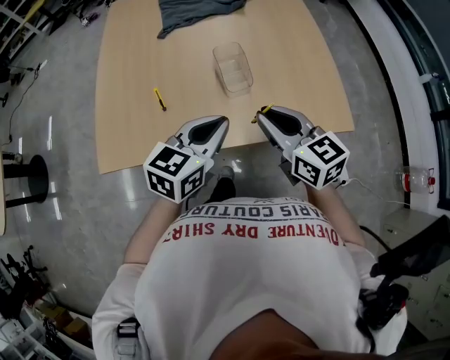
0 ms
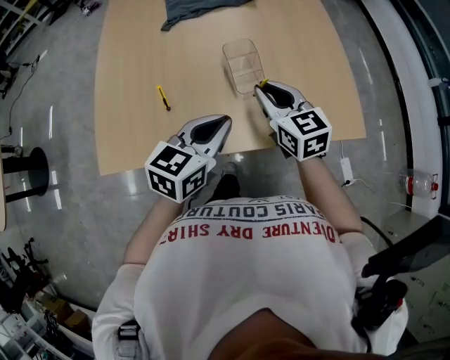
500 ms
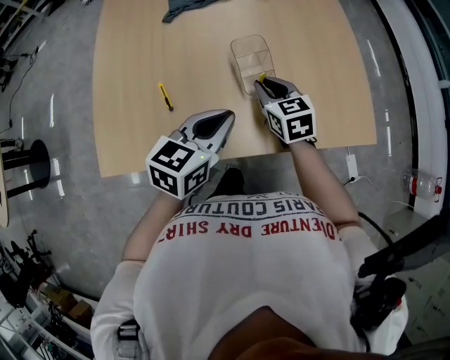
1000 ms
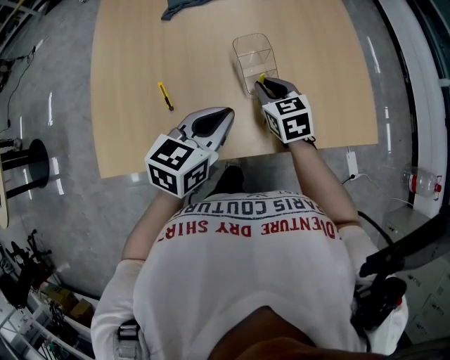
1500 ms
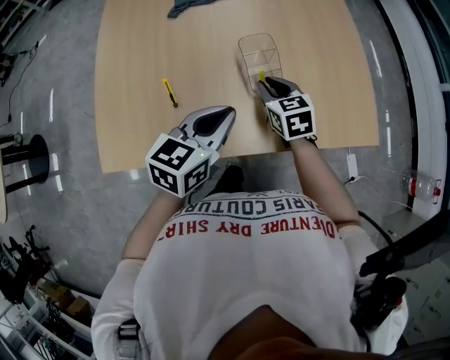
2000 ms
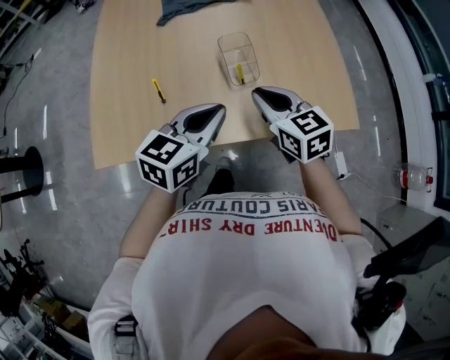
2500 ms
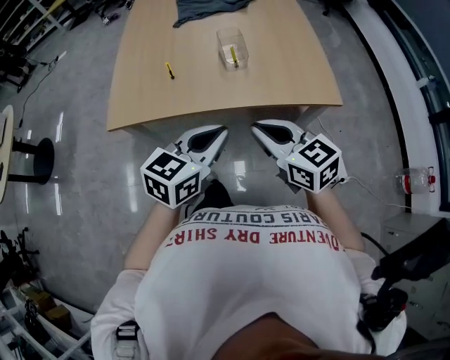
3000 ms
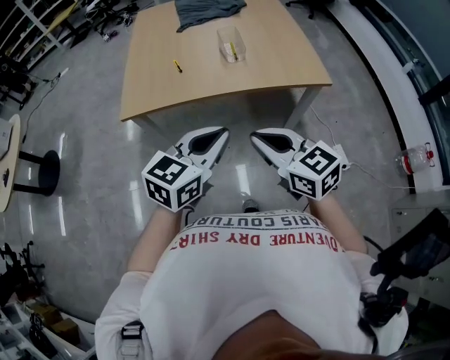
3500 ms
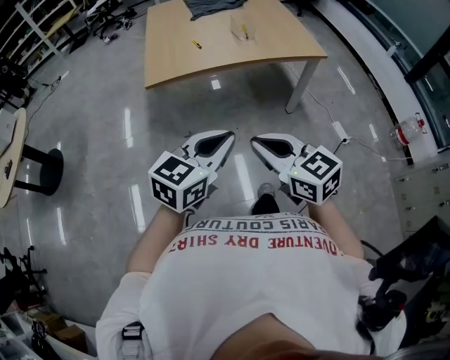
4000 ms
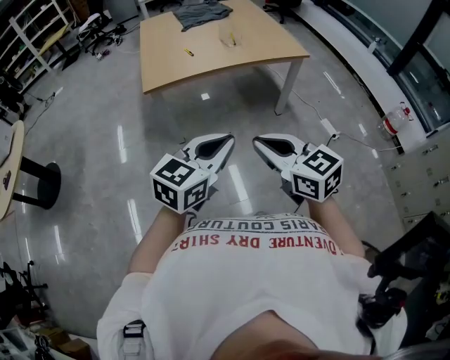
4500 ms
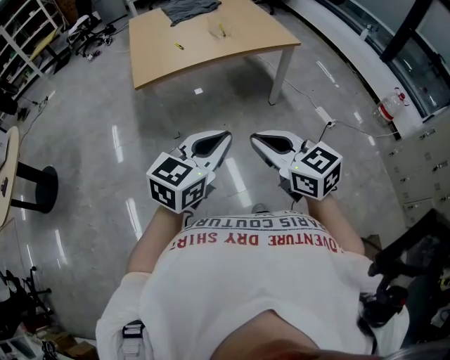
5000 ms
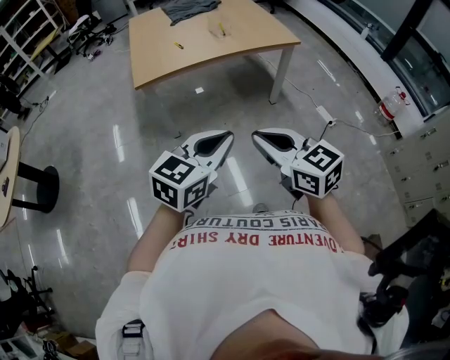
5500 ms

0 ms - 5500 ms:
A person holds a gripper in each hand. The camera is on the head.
0 ms - 2000 ms: The left gripper moves forward and downward, about 10 cm. Meanwhile the right gripper travels downward and forward by about 25 cm, and rotates approximately 20 degrees.
2000 ms - 3500 ms: Both grippers are carried backward, roughly 50 cm. The right gripper is displaced upward by about 25 cm, and rotates about 30 degrees.
3500 ms - 5500 ms: Both grippers move backward, approximately 35 cm.

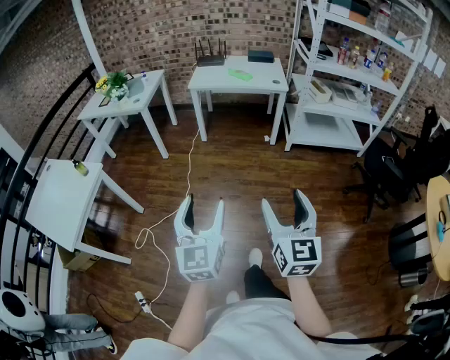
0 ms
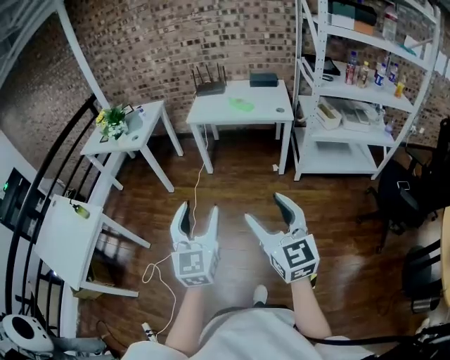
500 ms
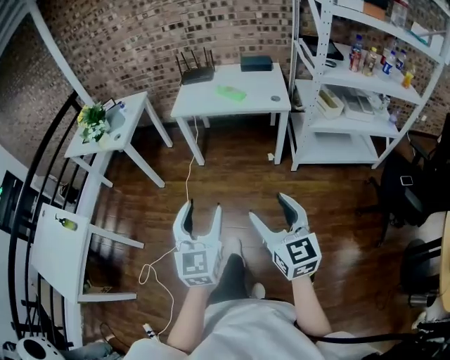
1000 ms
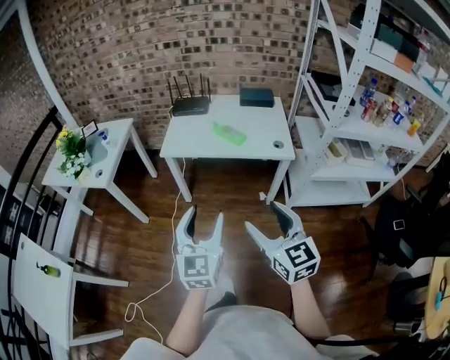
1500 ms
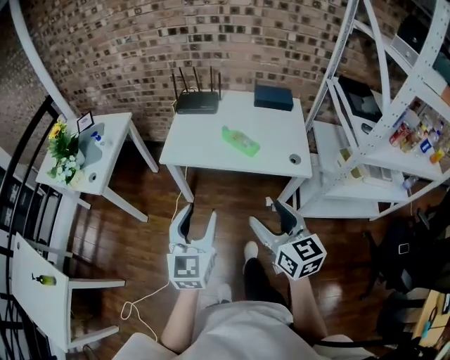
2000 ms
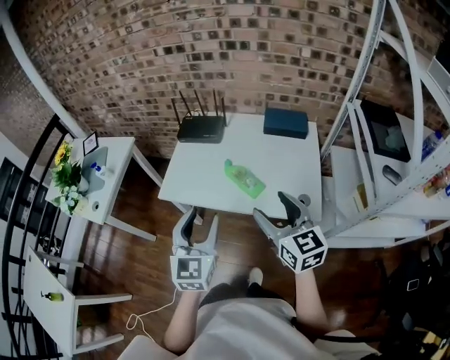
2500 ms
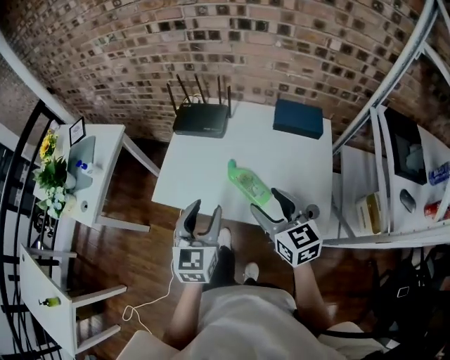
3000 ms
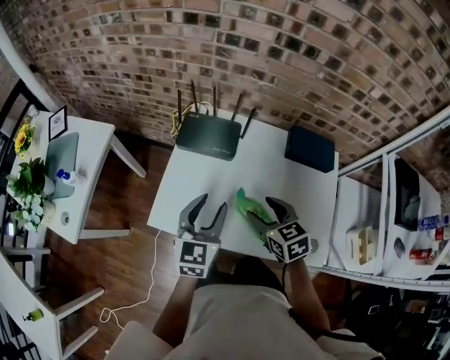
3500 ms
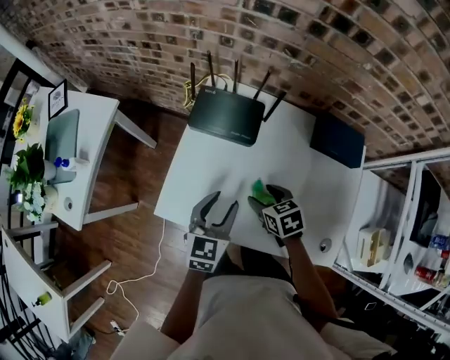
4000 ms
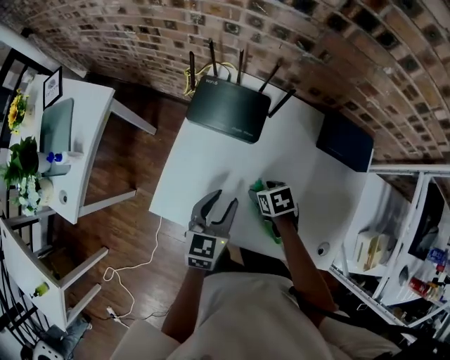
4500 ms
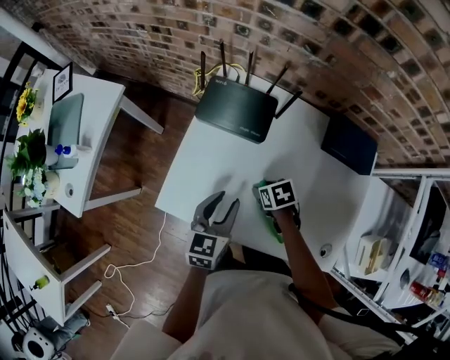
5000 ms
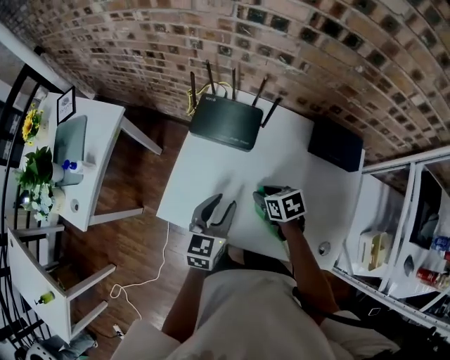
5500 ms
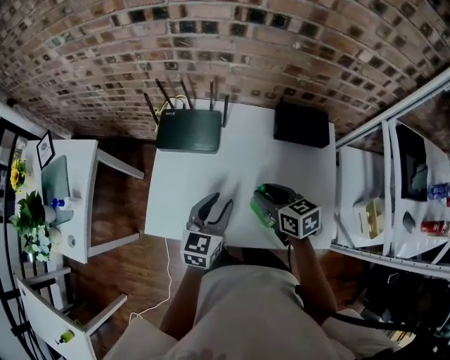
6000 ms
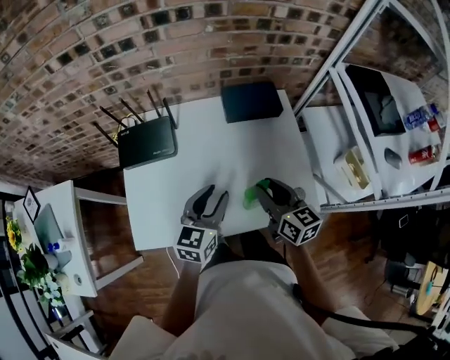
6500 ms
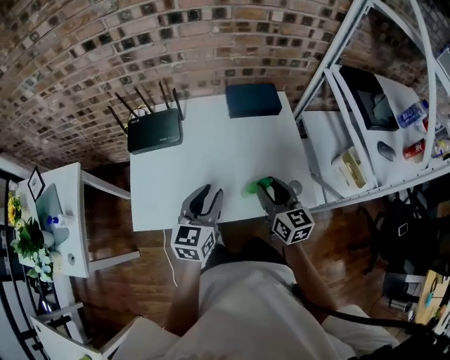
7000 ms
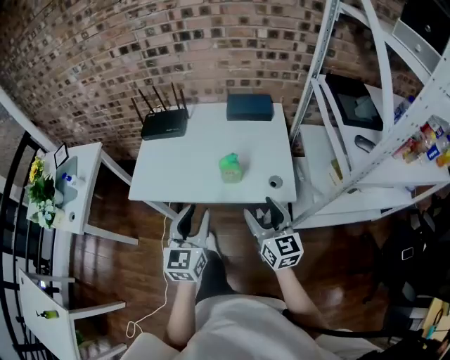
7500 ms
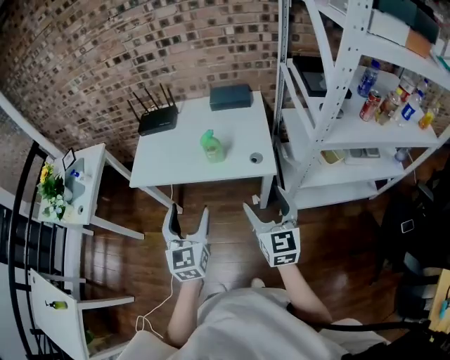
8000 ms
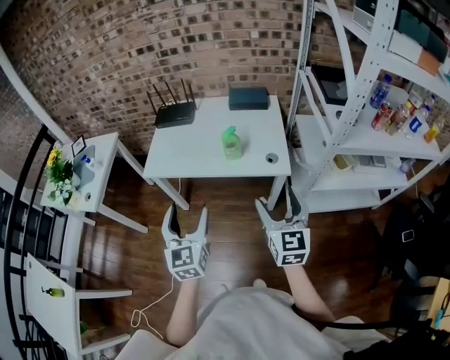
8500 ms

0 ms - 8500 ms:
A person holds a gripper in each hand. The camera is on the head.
0 ms - 2000 ms: Both grippers are carried forward, approximately 80 cm. The right gripper rotates some 20 degrees.
2000 ms - 4000 ms: The pair of grippers is taken forward, some 50 cm. The right gripper is displaced downward by roughly 25 cm, and points its fingers roughly 40 degrees further downward. The left gripper rotates roughly 20 degrees.
4000 ms - 6500 ms: The right gripper changes place by roughly 25 cm, and points its fingers approximately 40 degrees further upward. Meanwhile the left gripper moves approximately 15 cm, and swivels about 30 degrees.
6500 ms - 8500 ms: The two grippers travel together, backward, roughly 40 cm. The left gripper turns by approximately 40 degrees, and opens up, while the right gripper changes its angle by roughly 30 degrees, and opens its fingers.

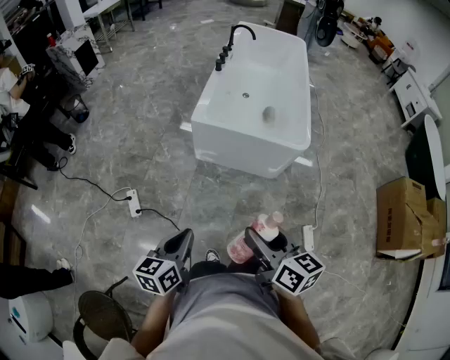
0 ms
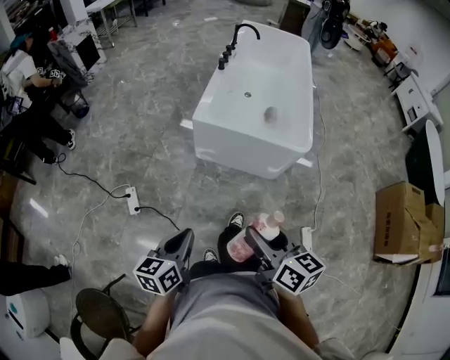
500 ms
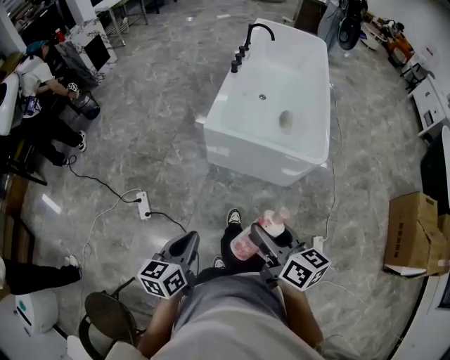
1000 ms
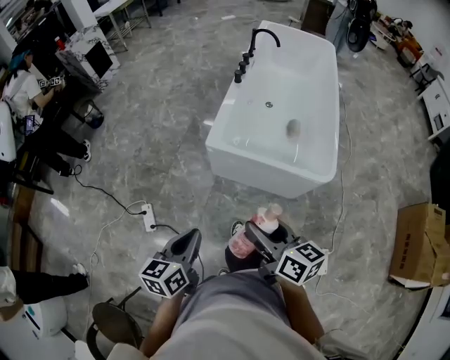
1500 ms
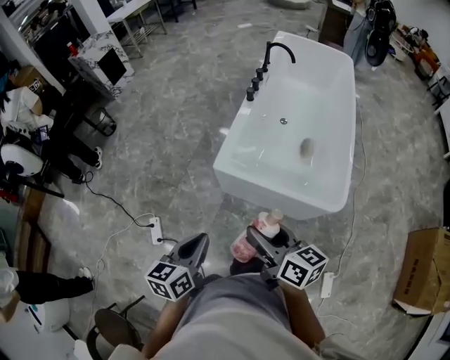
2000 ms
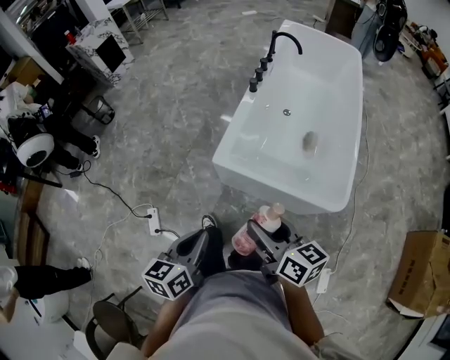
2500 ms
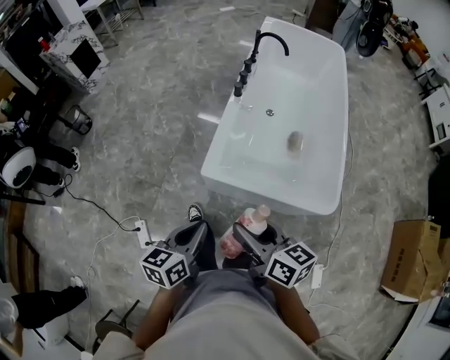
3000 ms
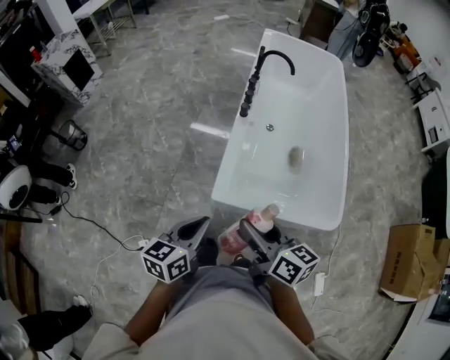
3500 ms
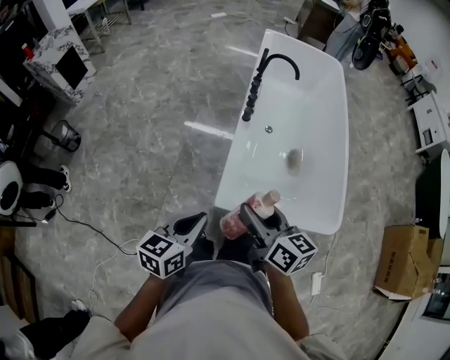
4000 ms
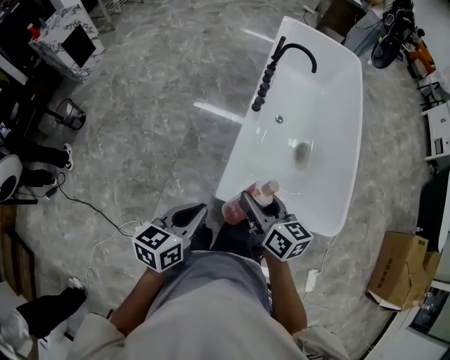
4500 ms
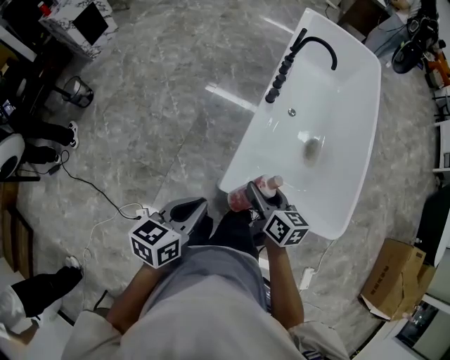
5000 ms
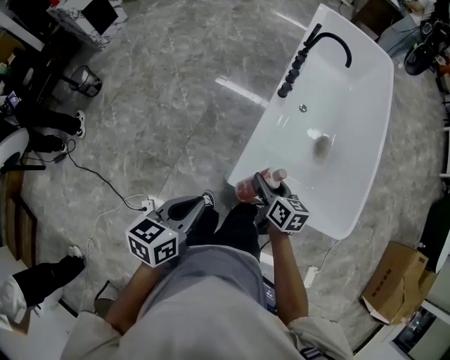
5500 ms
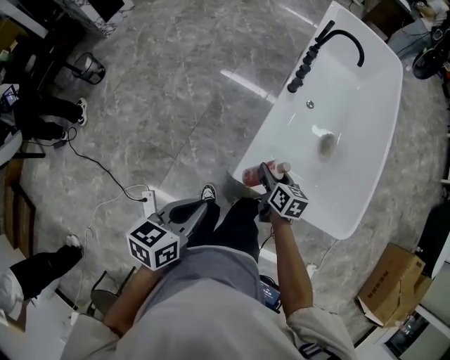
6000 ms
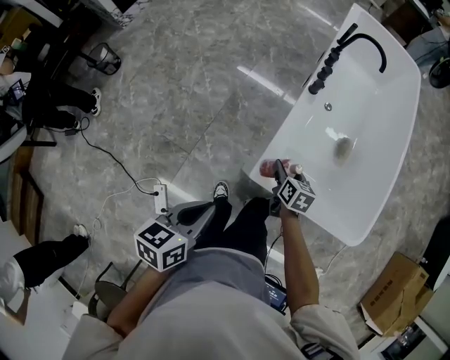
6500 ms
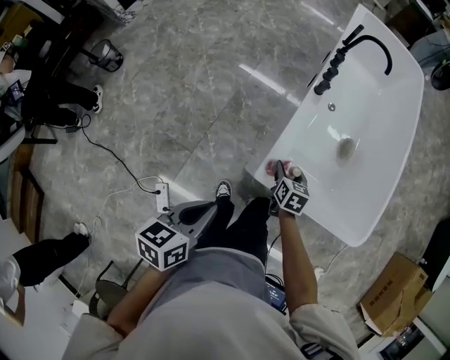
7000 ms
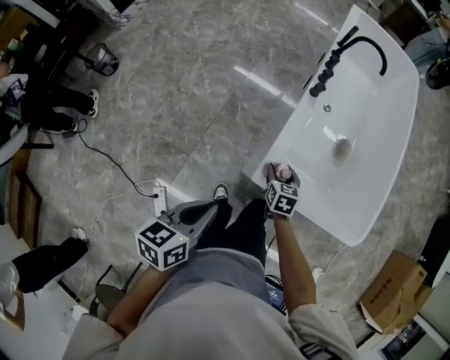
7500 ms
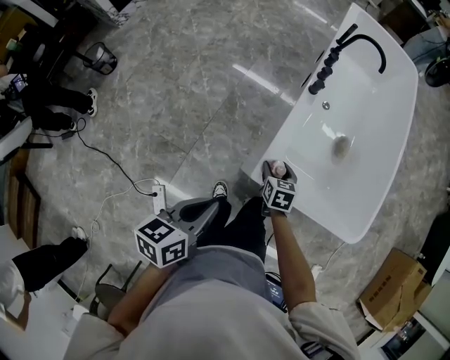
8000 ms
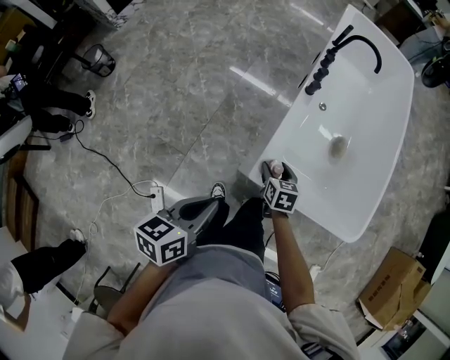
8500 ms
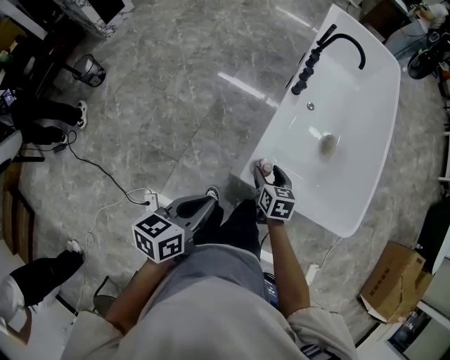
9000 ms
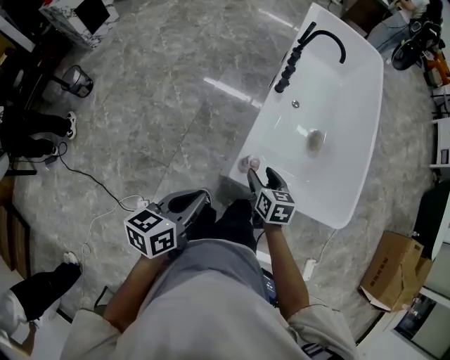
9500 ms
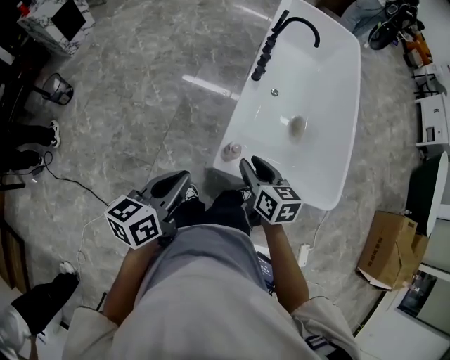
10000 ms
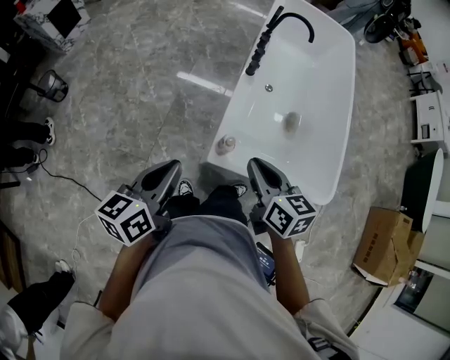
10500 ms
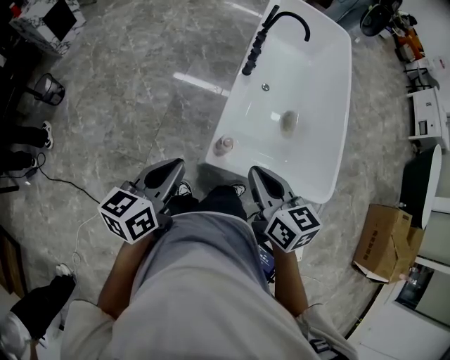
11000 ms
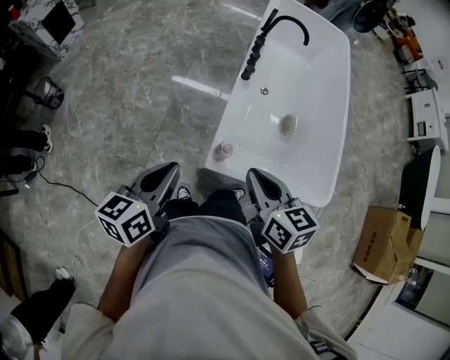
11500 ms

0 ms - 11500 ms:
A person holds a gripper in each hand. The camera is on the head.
0 ms - 2000 ms: Both grippers move forward, approximately 35 cm.
2000 ms - 4000 ms: The right gripper heads forward and to the left, covering roughly 30 cm; the left gripper travels forward by roughly 30 cm, and swivels about 20 degrees.
4000 ms - 6000 ms: The left gripper shifts by some 5 cm, while the right gripper heads downward, covering some 25 cm, and changes its angle by some 20 degrees.
6000 ms - 7500 ms: The right gripper travels downward by approximately 5 cm, and rotates approximately 20 degrees.
7500 ms - 9500 ms: The right gripper is displaced upward by some 10 cm.
9500 ms - 11500 ms: The right gripper shifts roughly 20 cm upward, and closes up, while the left gripper shifts by roughly 5 cm.

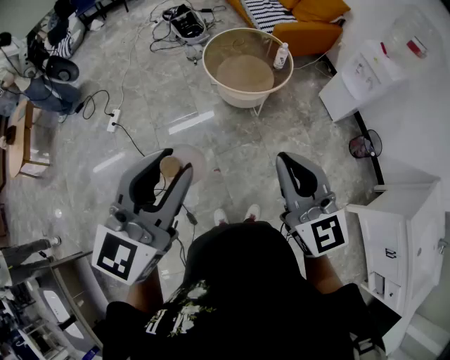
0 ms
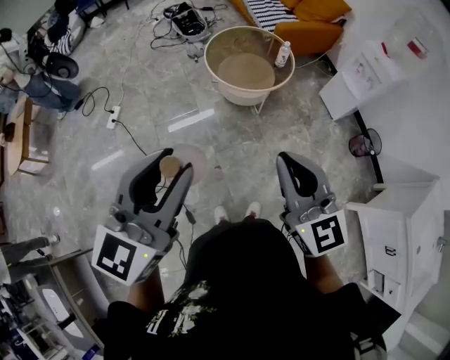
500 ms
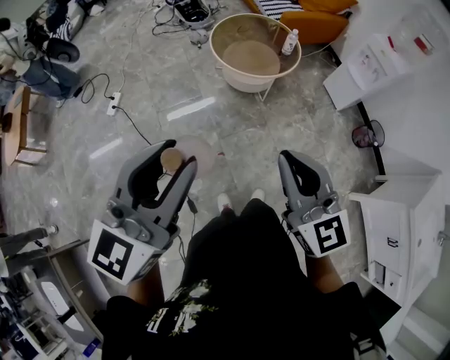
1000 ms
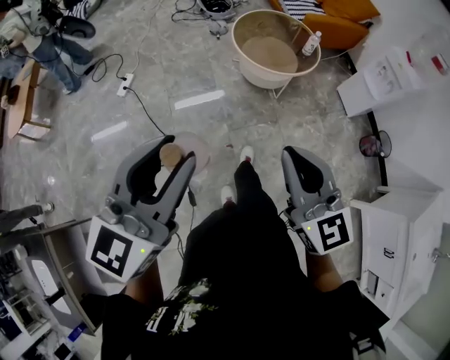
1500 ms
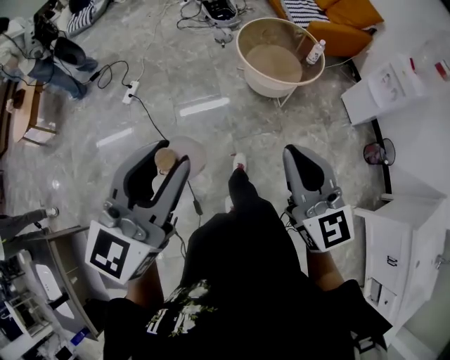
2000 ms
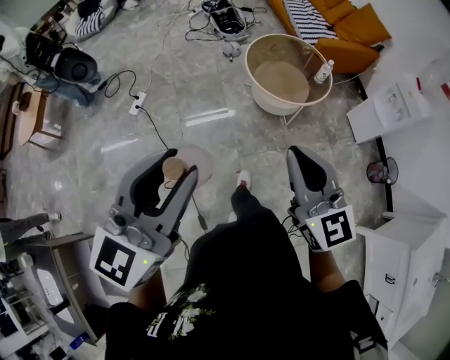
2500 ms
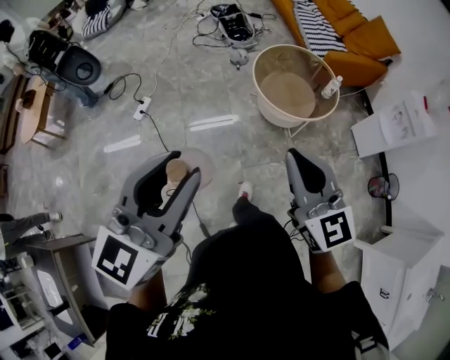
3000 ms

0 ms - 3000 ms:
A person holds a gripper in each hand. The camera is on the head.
0 ms - 1500 ms: The grippers both shift to the left and backward by some 15 cm.
1500 ms - 3000 ms: Both grippers move forward, approximately 20 cm.
